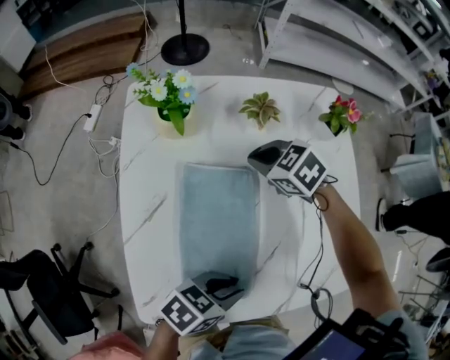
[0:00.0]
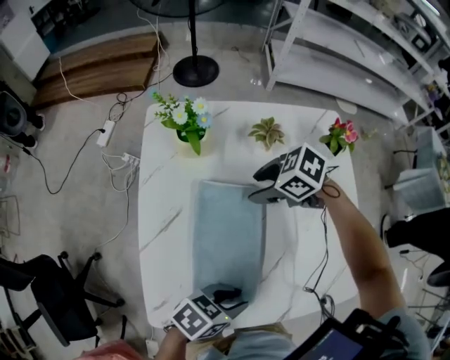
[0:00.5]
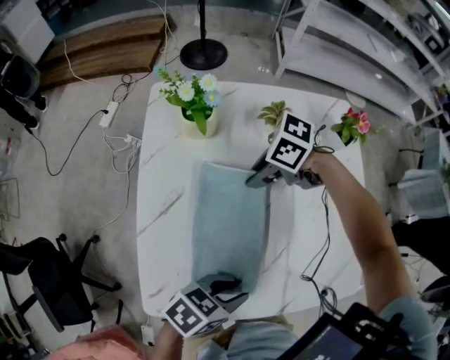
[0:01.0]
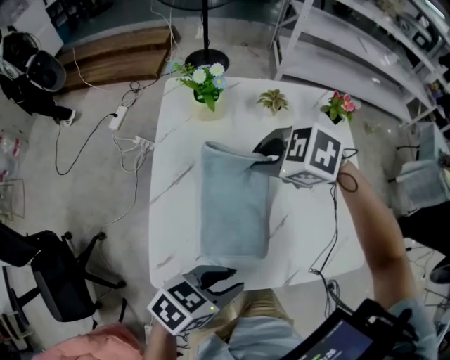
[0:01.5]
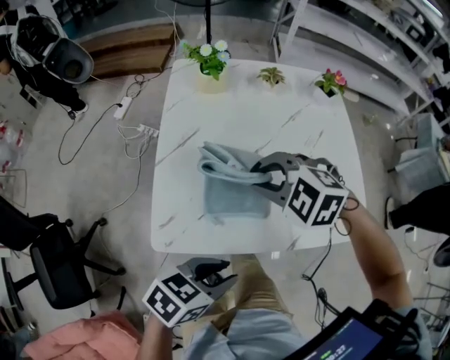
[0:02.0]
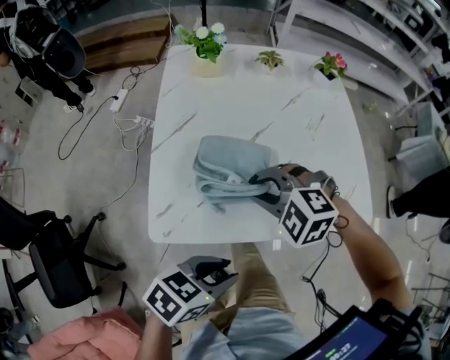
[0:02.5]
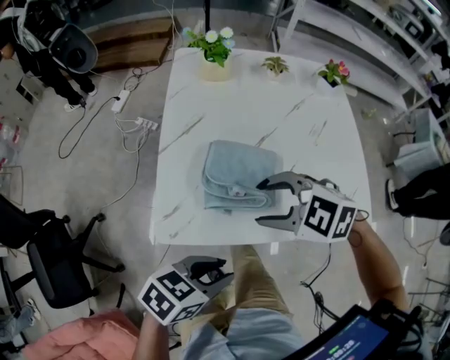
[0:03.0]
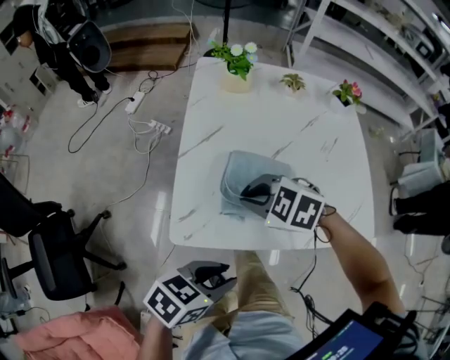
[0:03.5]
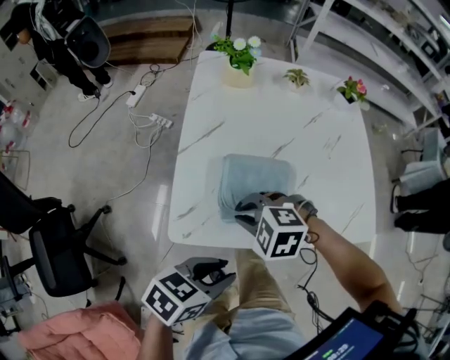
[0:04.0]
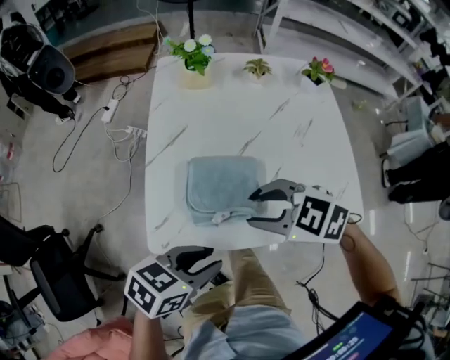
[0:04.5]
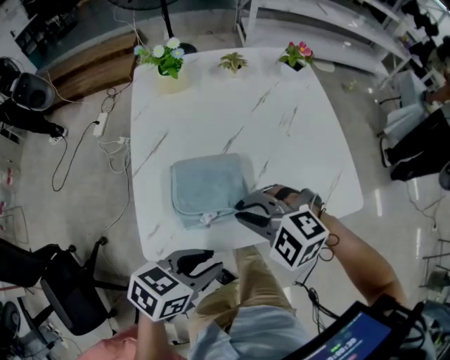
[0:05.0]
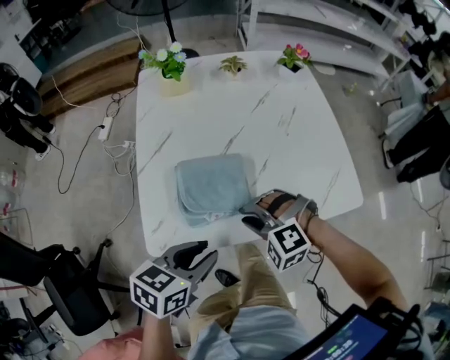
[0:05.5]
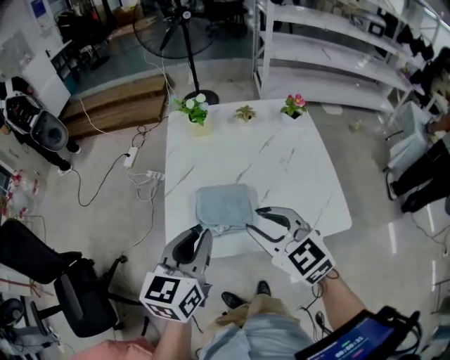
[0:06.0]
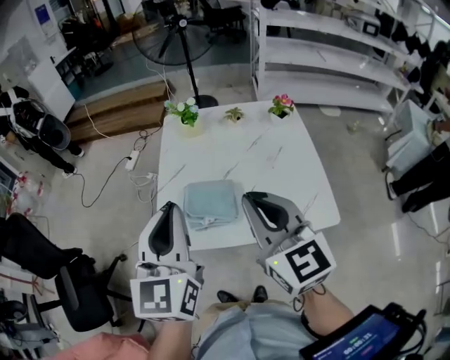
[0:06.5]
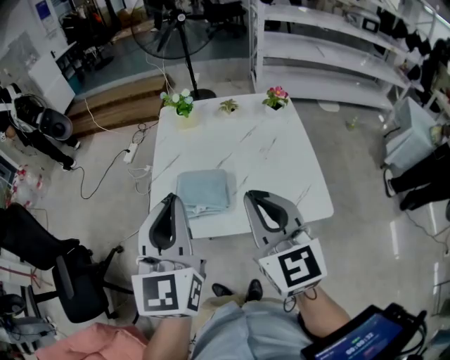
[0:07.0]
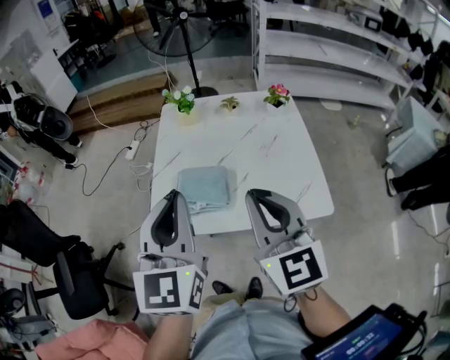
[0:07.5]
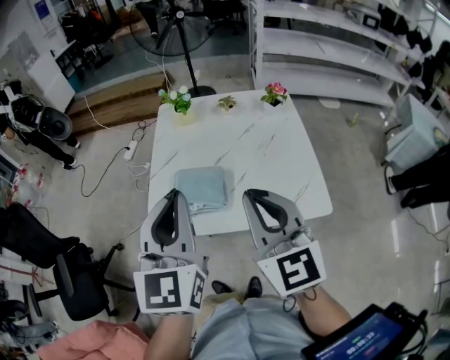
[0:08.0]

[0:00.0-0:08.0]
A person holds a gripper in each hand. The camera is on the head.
0:00.0 to 0:02.0: The left gripper shifts by about 20 cm. Meanwhile the right gripper ends up about 30 cm from where it was, turns by some 40 degrees, and opens, then closes once more.
0:02.0 to 0:04.0: The right gripper ends up some 15 cm from where it was, and opens, then closes again. The left gripper shifts by roughly 5 cm.
0:04.0 to 0:06.0: The right gripper moves up and down over approximately 20 cm, changing direction 2 times, and tilts its fingers approximately 40 degrees upward, while the left gripper travels upward by about 20 cm, and rotates approximately 50 degrees.
0:06.0 to 0:08.0: Both grippers travel together upward, to the right and backward, about 15 cm. The left gripper turns by some 30 degrees. The right gripper rotates about 30 degrees, and closes its fingers.

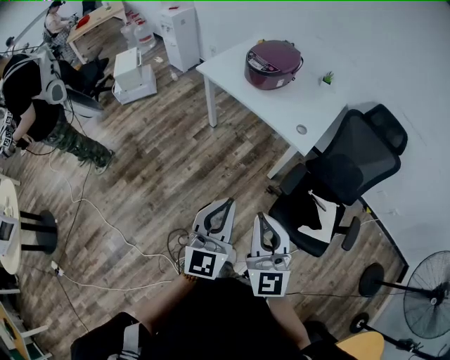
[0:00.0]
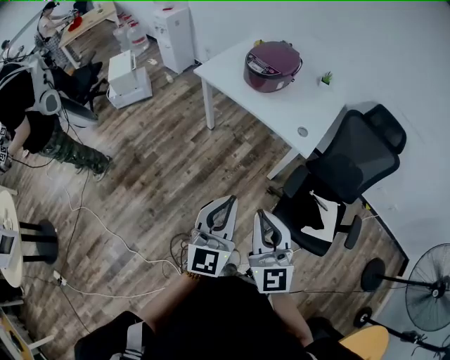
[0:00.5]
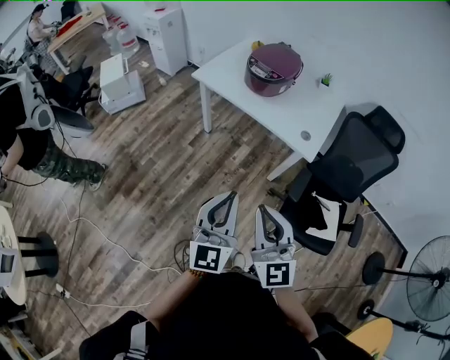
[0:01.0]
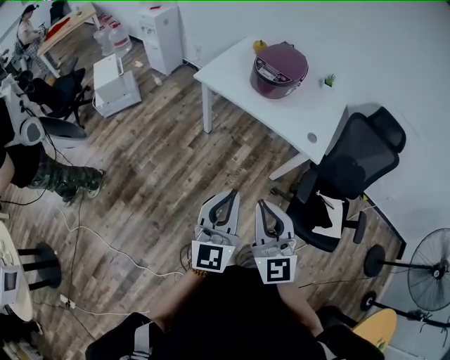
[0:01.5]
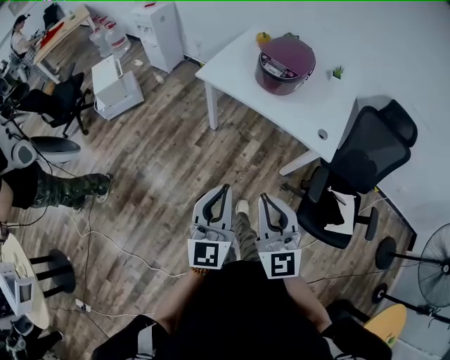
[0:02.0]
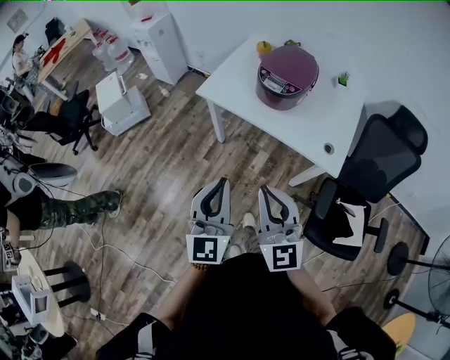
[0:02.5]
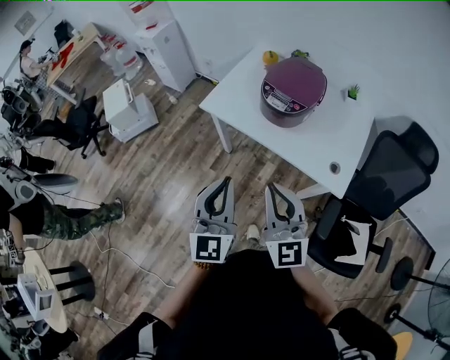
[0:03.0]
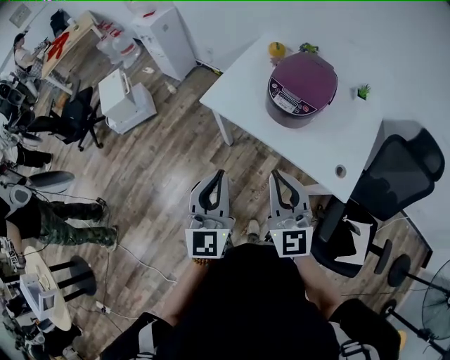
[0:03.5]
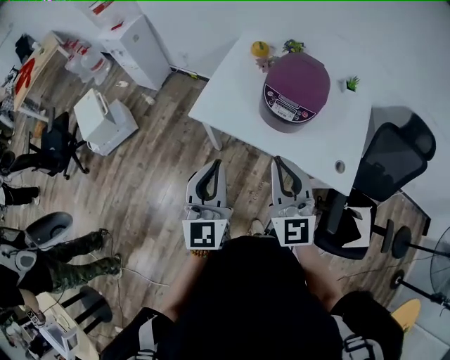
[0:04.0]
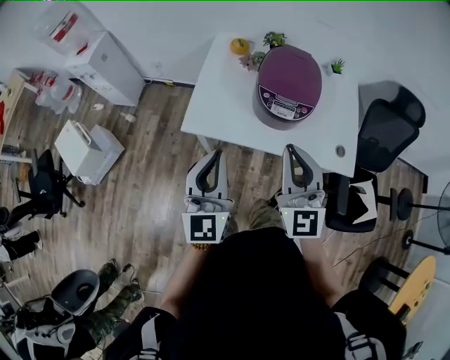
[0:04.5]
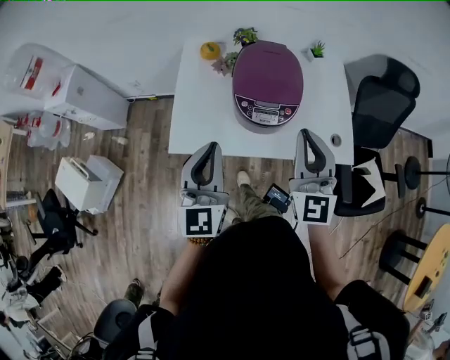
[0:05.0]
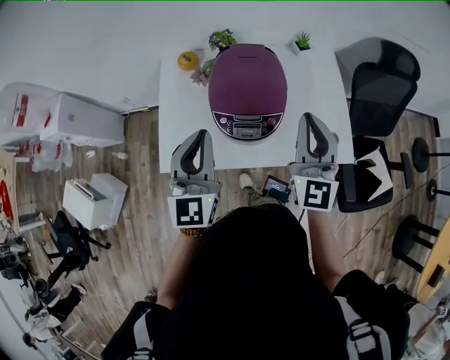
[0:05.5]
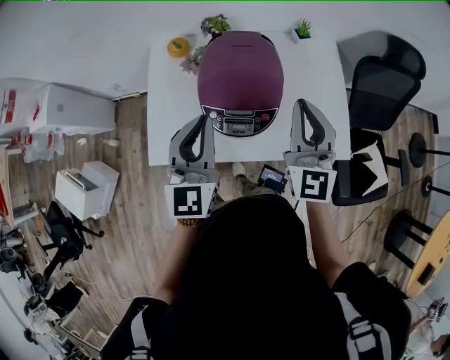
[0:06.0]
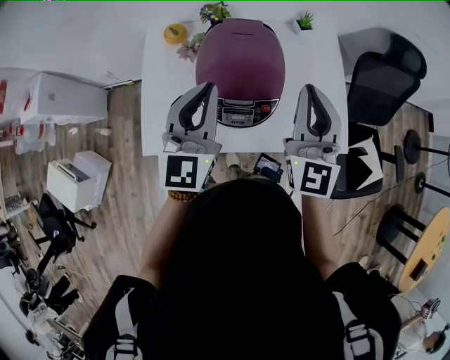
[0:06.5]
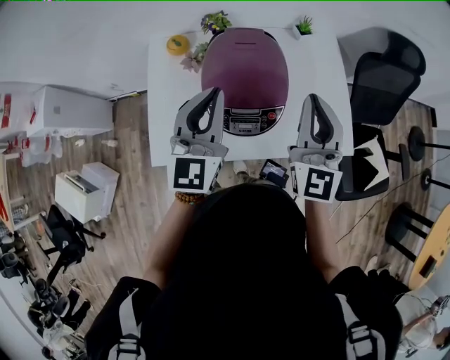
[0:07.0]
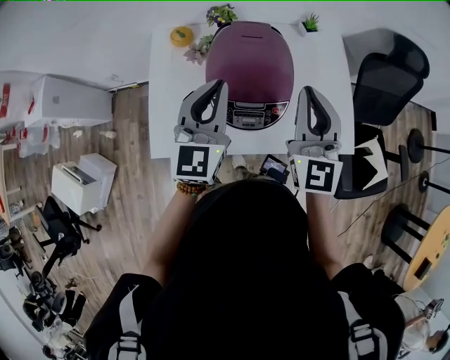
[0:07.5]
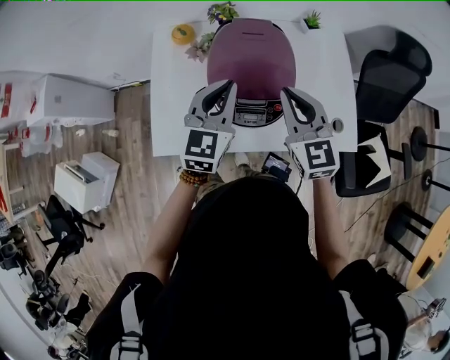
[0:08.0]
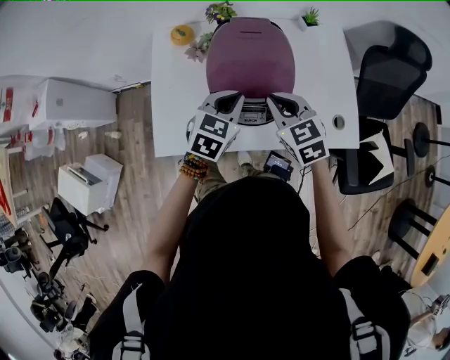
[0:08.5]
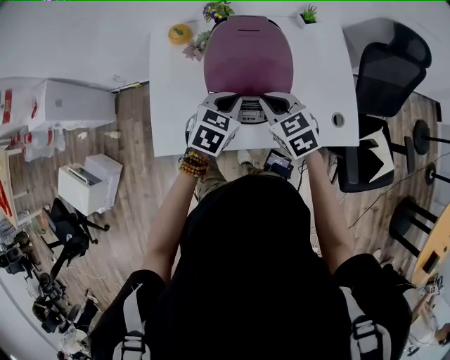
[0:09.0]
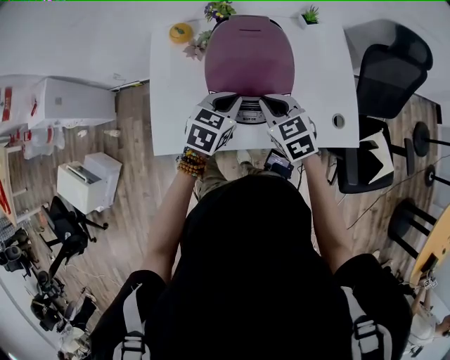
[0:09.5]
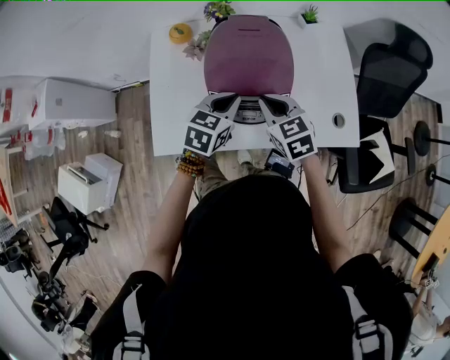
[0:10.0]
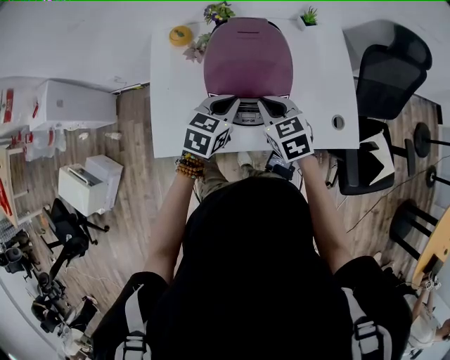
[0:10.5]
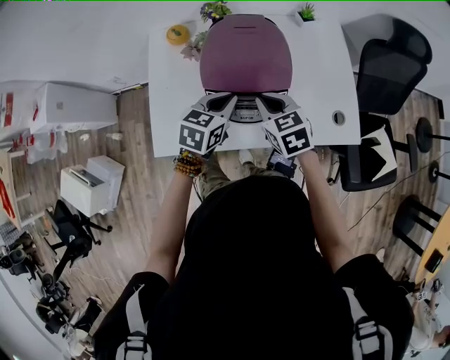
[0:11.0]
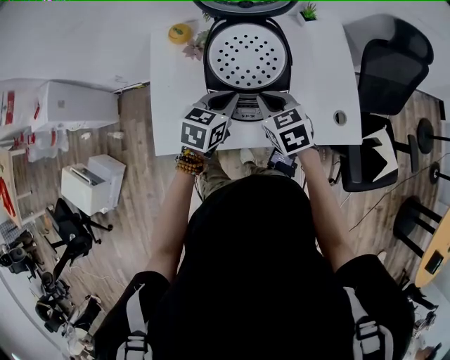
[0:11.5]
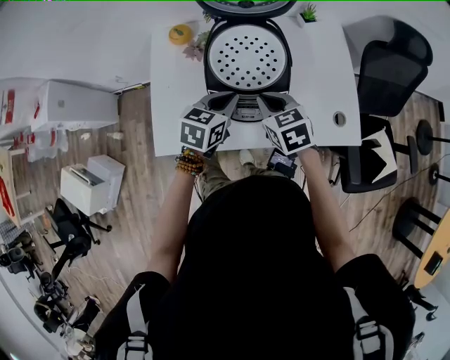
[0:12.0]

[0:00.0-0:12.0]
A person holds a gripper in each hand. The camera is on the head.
0:00.0 to 0:02.0: Both grippers move to the left and forward, approximately 30 cm.
0:02.0 to 0:04.0: The grippers both shift forward by some 40 cm.
0:04.0 to 0:06.0: The left gripper changes place by some 30 cm, and rotates roughly 30 degrees, while the right gripper ends up some 30 cm from where it was, and changes its angle by some 30 degrees.
0:06.0 to 0:08.0: The left gripper is displaced forward and downward by about 10 cm; the right gripper travels downward and to the left by about 10 cm, and swivels roughly 20 degrees.
0:08.0 to 0:10.0: The grippers both shift downward by about 10 cm. The left gripper changes its angle by some 30 degrees. The right gripper rotates some 20 degrees.
0:10.0 to 0:12.0: The grippers move only a little.

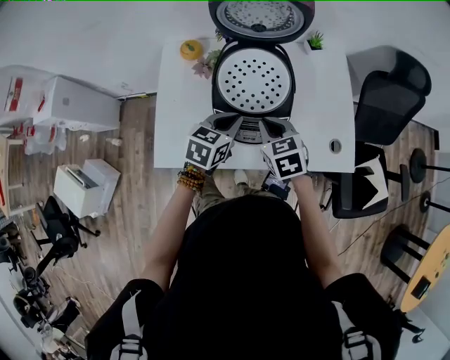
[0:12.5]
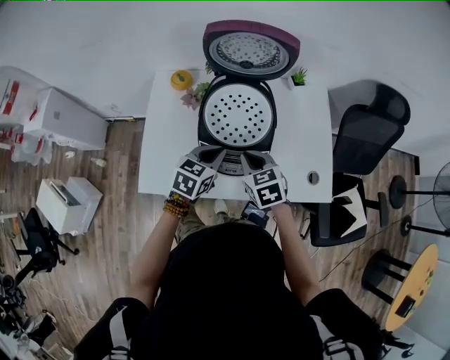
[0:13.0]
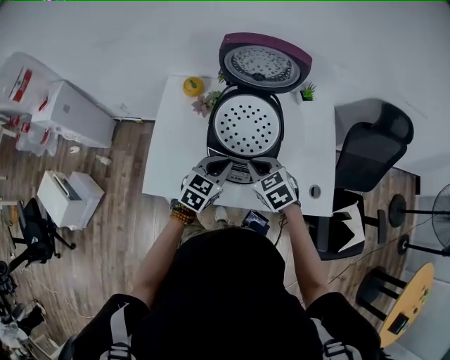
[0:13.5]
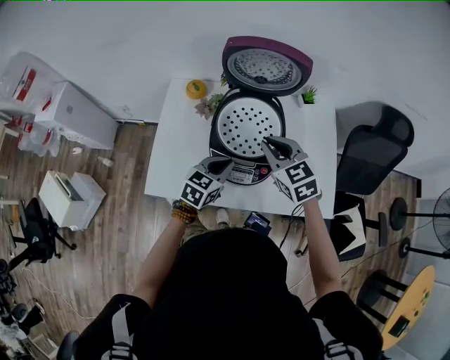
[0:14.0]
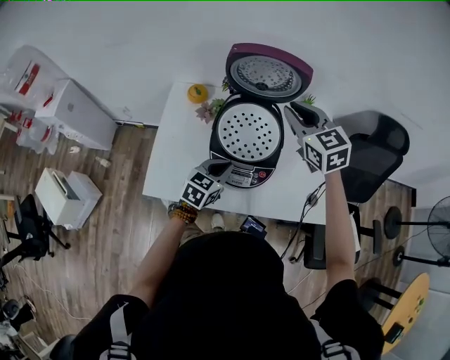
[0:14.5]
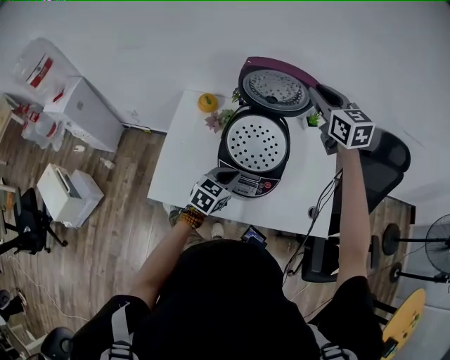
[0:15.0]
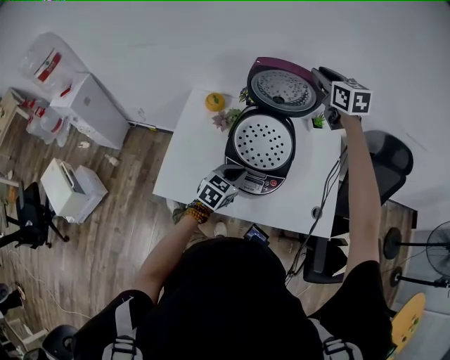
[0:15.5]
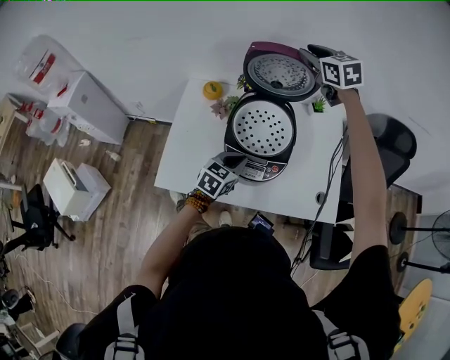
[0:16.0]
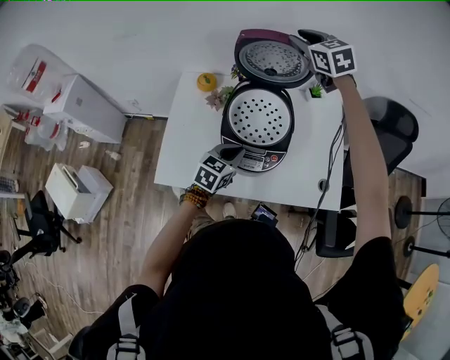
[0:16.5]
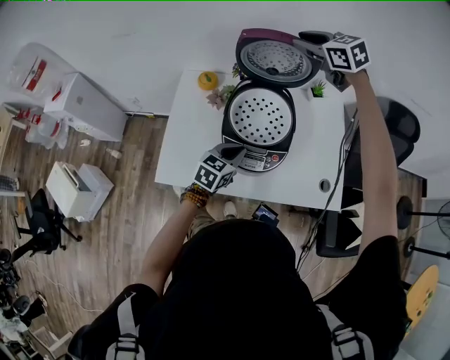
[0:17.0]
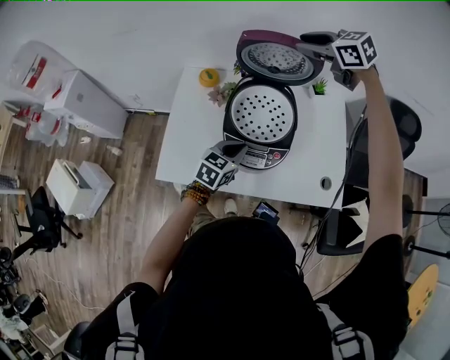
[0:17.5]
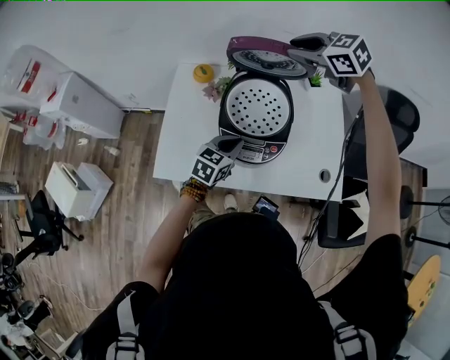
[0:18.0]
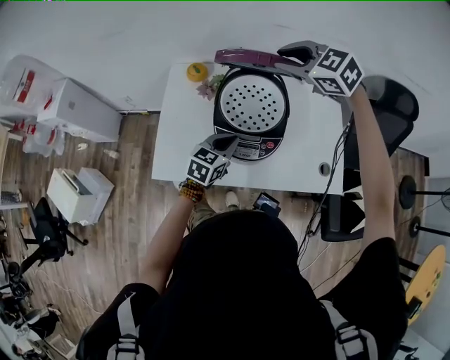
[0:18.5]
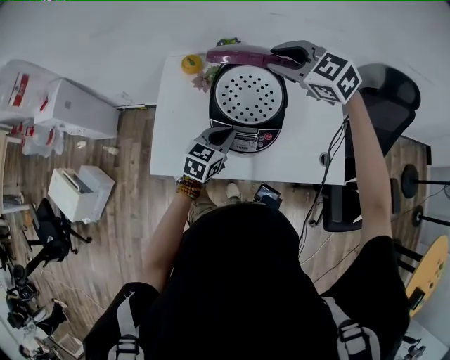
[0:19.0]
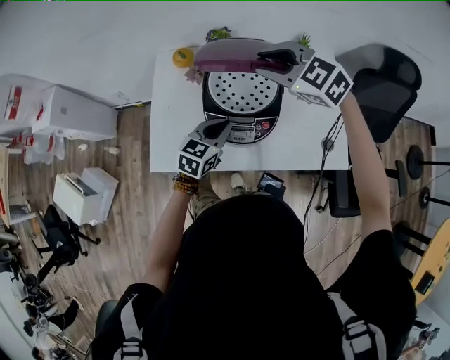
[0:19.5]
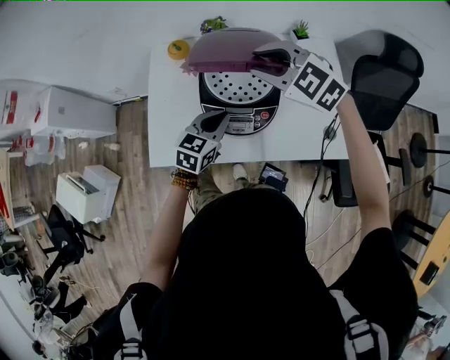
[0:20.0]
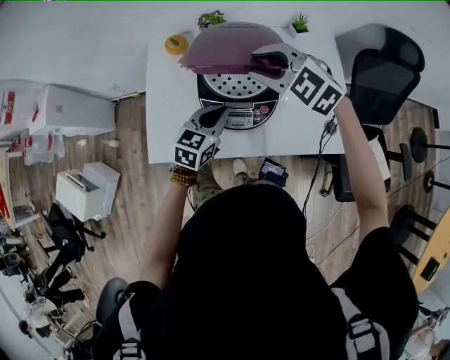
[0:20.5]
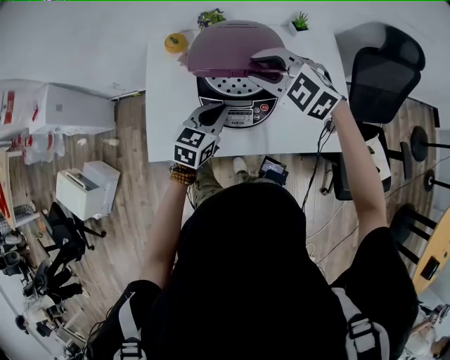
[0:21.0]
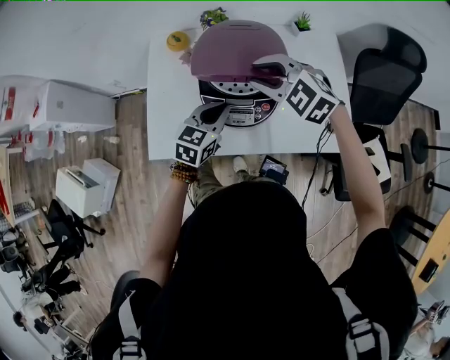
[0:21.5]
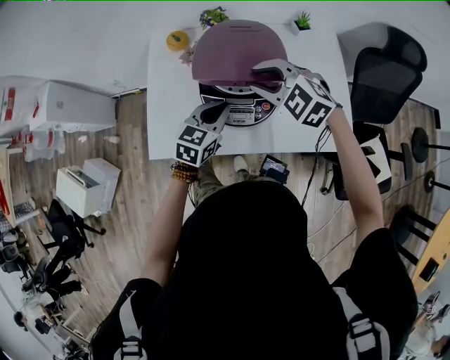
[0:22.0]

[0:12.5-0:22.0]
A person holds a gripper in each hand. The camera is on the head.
0:12.5 to 0:14.5: The right gripper is displaced upward and forward by about 25 cm, and rotates about 30 degrees.
0:14.5 to 0:16.5: The right gripper heads forward and upward, covering approximately 15 cm.
0:16.5 to 0:18.0: The right gripper travels backward by approximately 10 cm, and changes its angle by some 30 degrees.
0:18.0 to 0:20.0: The right gripper goes some 15 cm backward and downward.
0:20.0 to 0:22.0: The right gripper goes about 5 cm downward.
